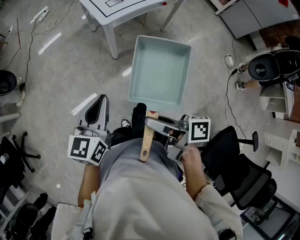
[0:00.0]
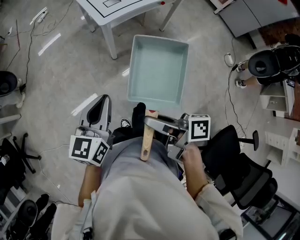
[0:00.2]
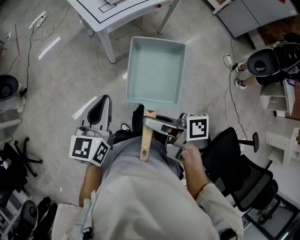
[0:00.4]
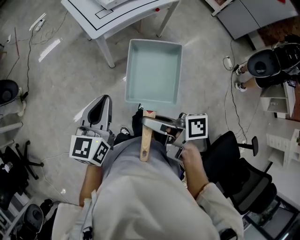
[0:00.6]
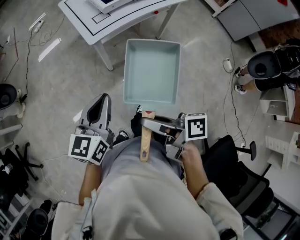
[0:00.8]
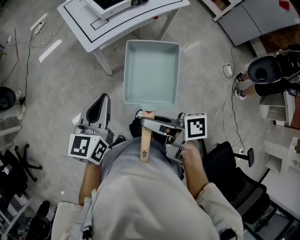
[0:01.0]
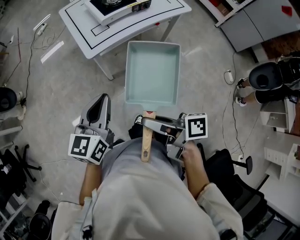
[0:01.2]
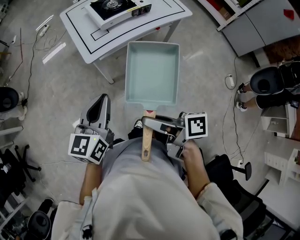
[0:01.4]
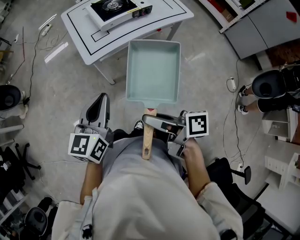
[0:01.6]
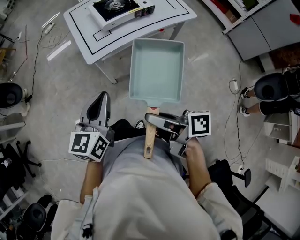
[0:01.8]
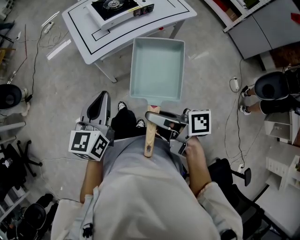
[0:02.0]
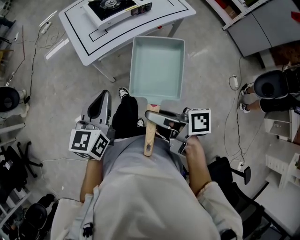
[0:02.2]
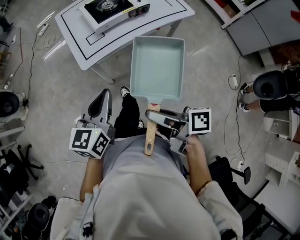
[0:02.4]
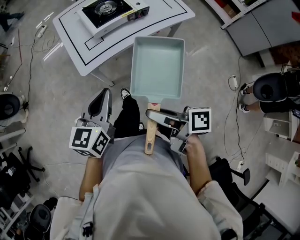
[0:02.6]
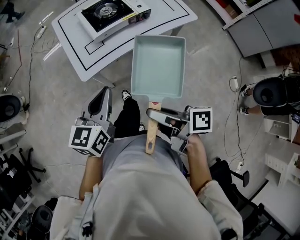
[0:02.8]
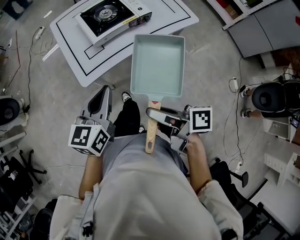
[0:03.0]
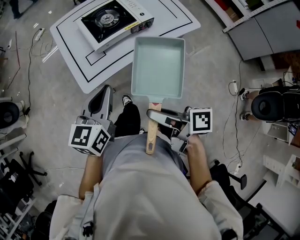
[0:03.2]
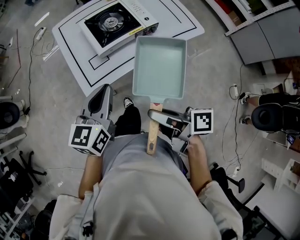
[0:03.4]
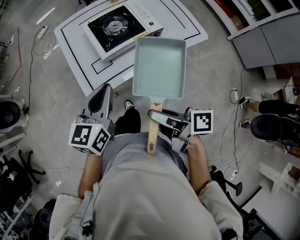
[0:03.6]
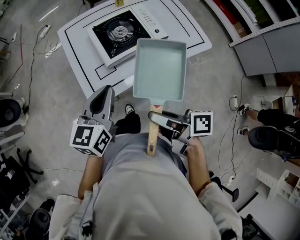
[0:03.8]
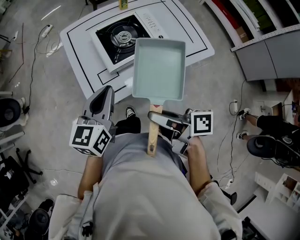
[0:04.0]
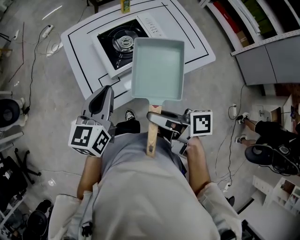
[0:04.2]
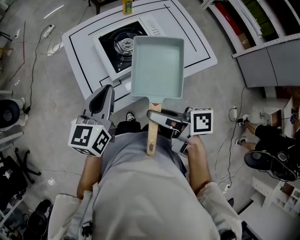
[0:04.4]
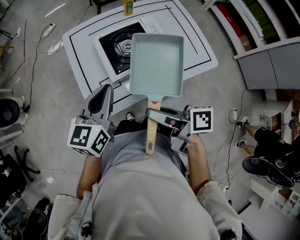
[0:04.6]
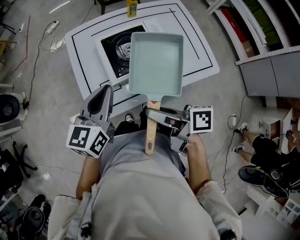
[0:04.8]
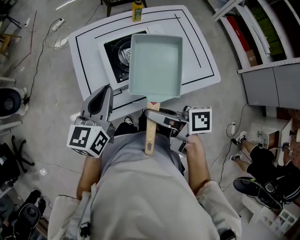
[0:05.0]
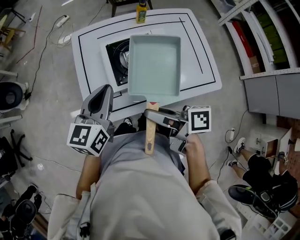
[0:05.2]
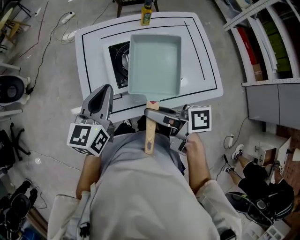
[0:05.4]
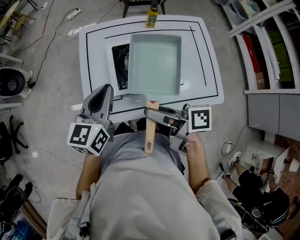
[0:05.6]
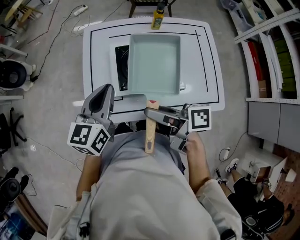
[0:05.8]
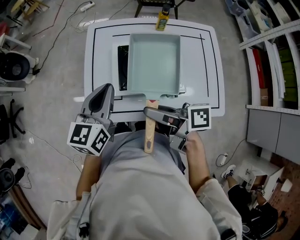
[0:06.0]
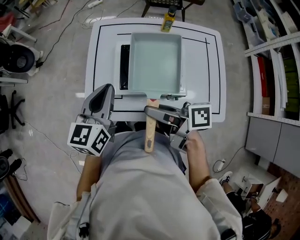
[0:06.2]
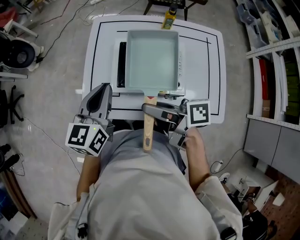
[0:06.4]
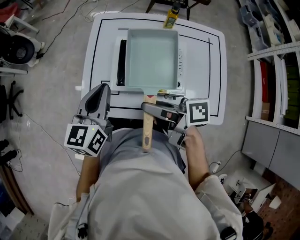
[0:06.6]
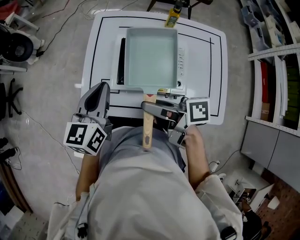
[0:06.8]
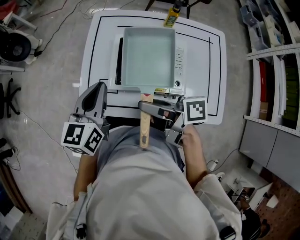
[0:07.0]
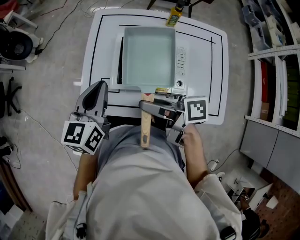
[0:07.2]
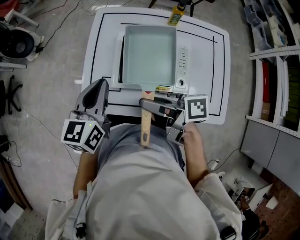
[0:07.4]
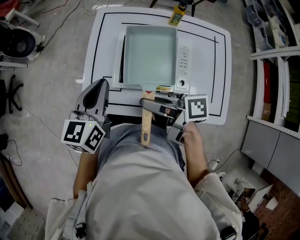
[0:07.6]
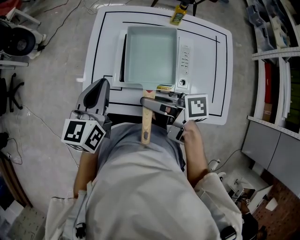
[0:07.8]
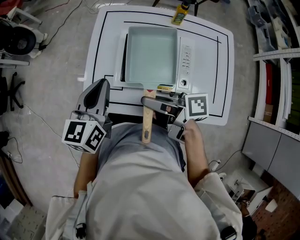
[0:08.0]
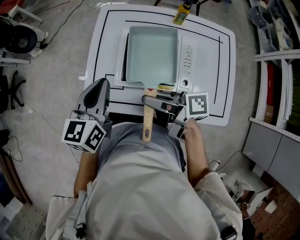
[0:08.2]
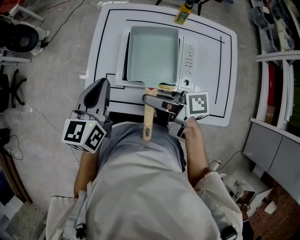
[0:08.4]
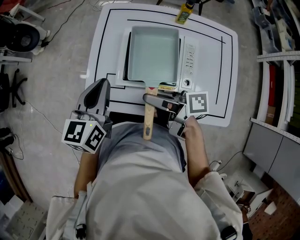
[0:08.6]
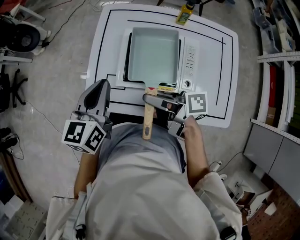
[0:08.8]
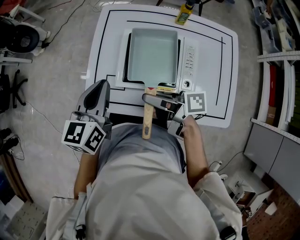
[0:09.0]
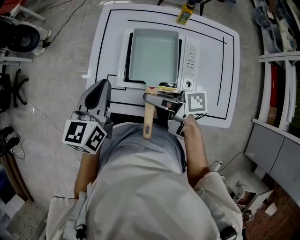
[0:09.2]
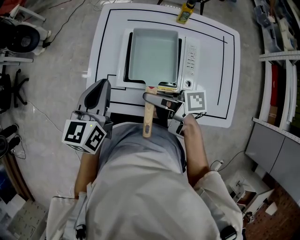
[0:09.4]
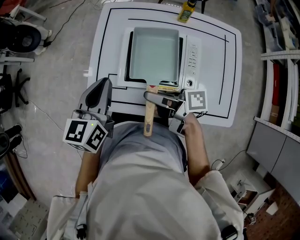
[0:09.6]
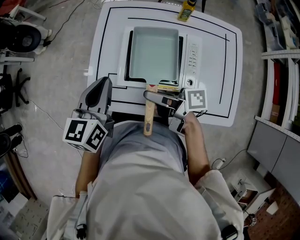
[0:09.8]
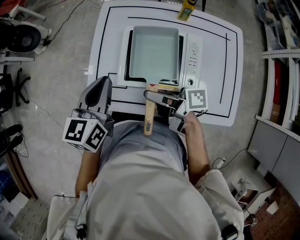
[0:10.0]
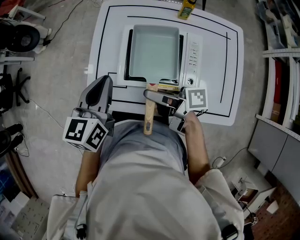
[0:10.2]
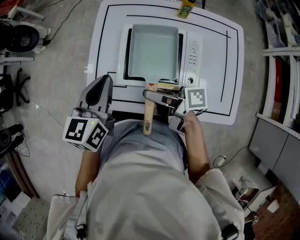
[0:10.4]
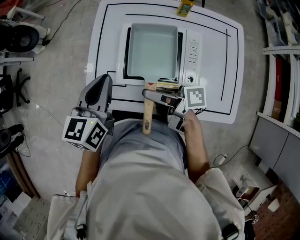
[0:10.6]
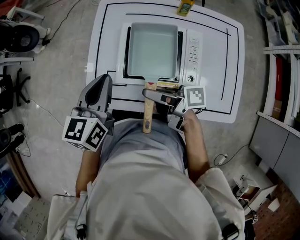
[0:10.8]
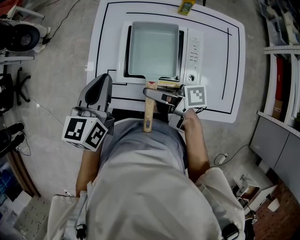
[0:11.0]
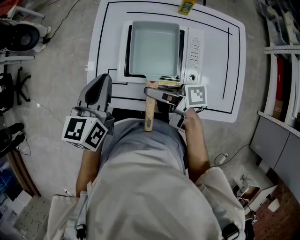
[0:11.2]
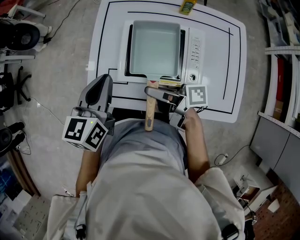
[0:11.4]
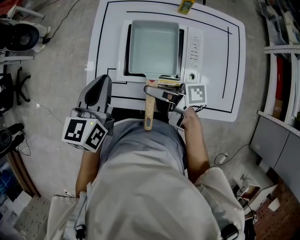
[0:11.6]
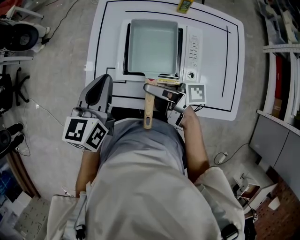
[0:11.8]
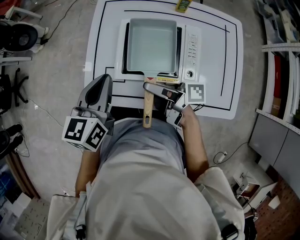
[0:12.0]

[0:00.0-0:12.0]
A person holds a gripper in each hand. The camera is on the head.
0:00.0 to 0:01.6: The left gripper changes place by some 25 cm.
0:01.6 to 0:03.0: The left gripper changes place by approximately 15 cm.
0:03.0 to 0:04.4: The left gripper moves roughly 20 cm.
0:04.4 to 0:06.0: The left gripper shifts by some 10 cm, and turns by some 20 degrees.

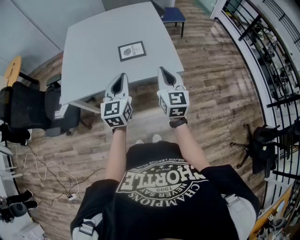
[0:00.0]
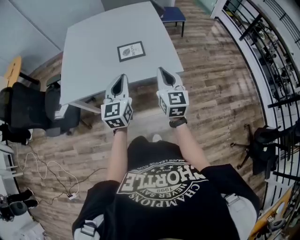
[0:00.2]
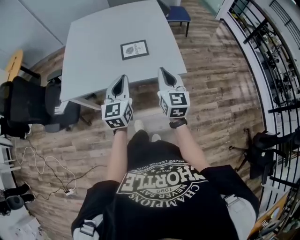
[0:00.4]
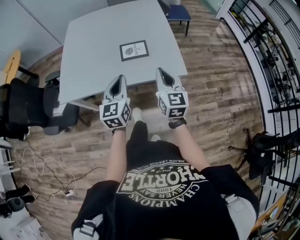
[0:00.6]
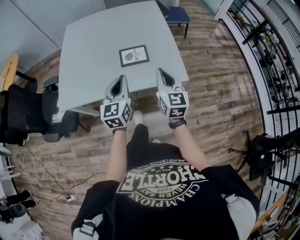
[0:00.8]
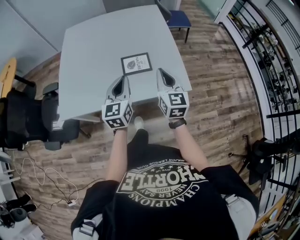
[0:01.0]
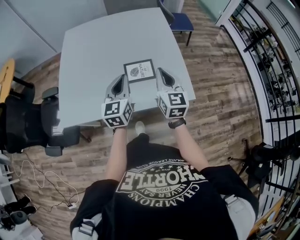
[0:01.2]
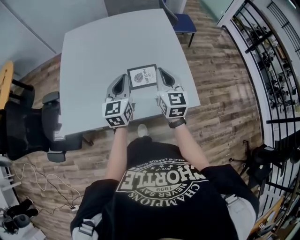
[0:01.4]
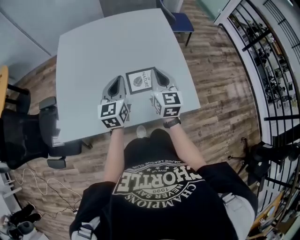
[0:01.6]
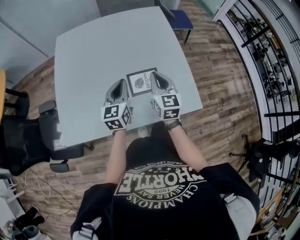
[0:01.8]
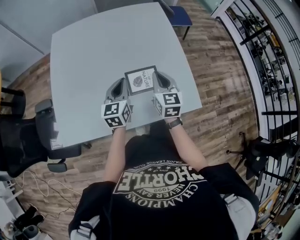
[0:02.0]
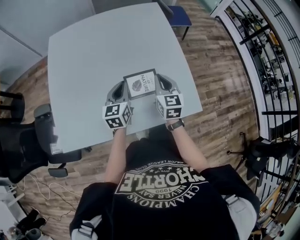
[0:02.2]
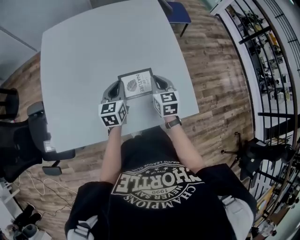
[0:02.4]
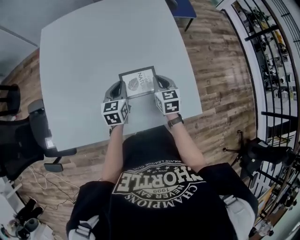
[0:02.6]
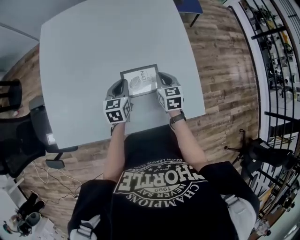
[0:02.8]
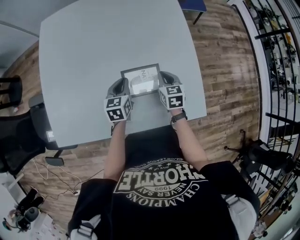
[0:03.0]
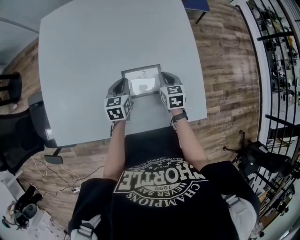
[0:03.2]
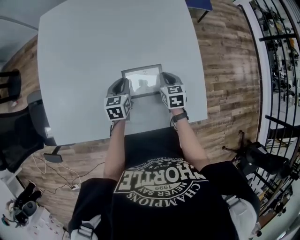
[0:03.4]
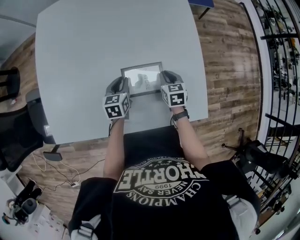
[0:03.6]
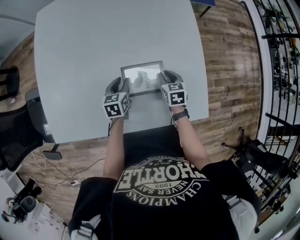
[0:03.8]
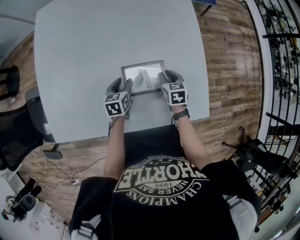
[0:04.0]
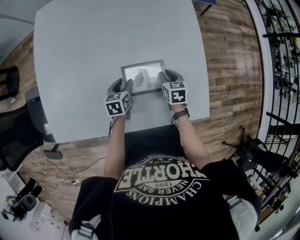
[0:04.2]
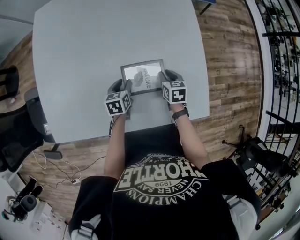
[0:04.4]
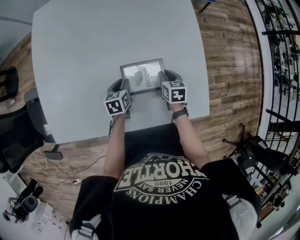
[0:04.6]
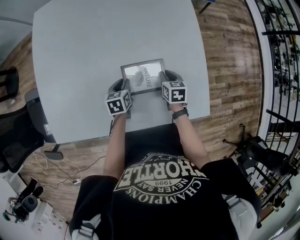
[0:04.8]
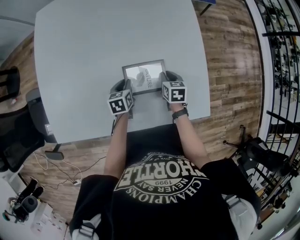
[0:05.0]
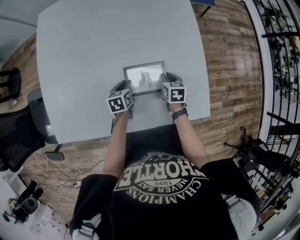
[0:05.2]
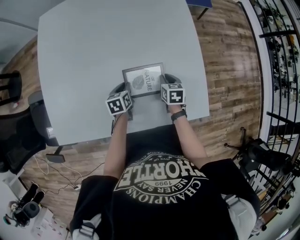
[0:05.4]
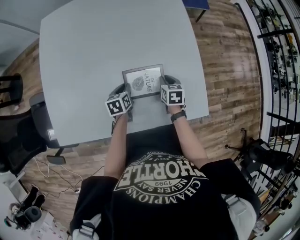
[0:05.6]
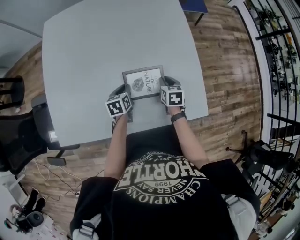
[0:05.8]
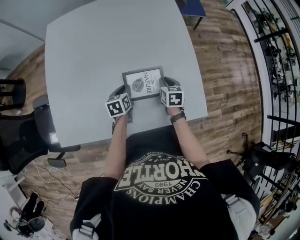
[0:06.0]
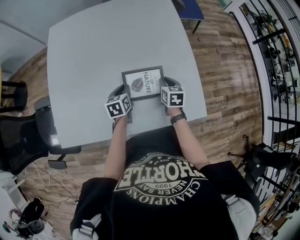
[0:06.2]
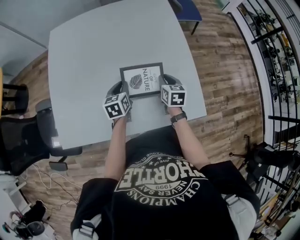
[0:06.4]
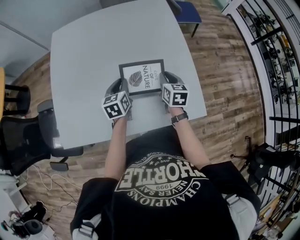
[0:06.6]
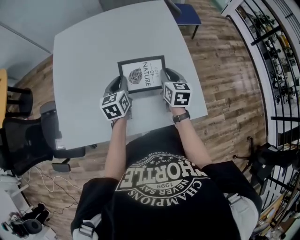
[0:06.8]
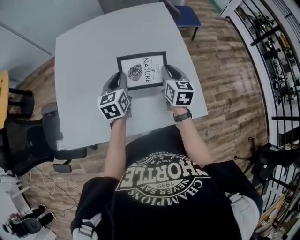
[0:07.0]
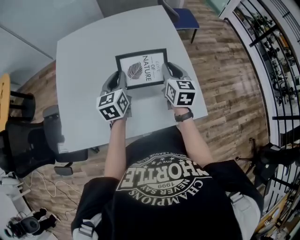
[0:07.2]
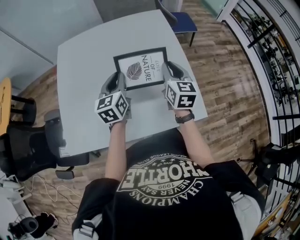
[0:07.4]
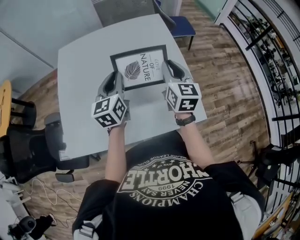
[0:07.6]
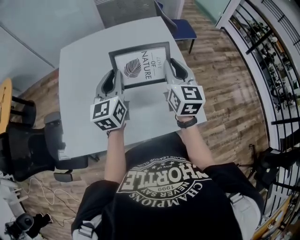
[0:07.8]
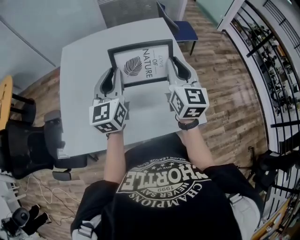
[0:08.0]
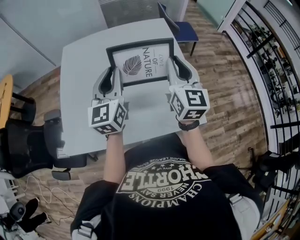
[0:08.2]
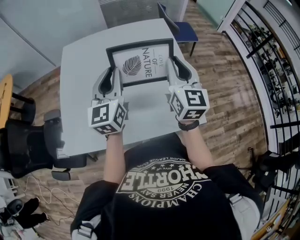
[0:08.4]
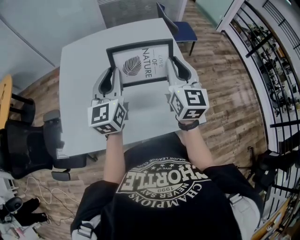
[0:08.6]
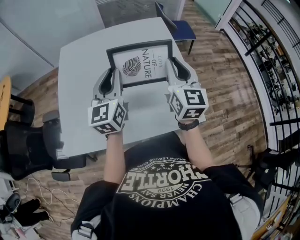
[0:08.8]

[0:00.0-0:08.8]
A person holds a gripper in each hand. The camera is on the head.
0:00.0 to 0:01.4: The two grippers go roughly 30 cm forward.
0:01.4 to 0:03.0: The grippers both shift downward and forward by about 30 cm. The left gripper changes its angle by approximately 30 degrees; the right gripper angles its fingers downward, by about 30 degrees.
0:03.0 to 0:04.4: The grippers both shift downward by some 10 cm. The right gripper opens its fingers, while the left gripper opens its fingers.
0:04.4 to 0:05.8: The grippers move only a little.
0:05.8 to 0:07.4: Both grippers travel together upward, approximately 30 cm. The left gripper tips its fingers upward by roughly 30 degrees, while the right gripper tilts its fingers some 30 degrees upward.
0:07.4 to 0:08.8: The two grippers go about 10 cm upward.

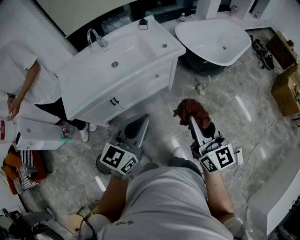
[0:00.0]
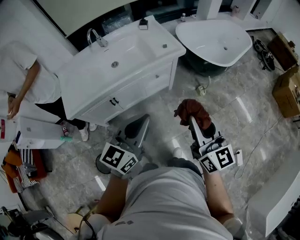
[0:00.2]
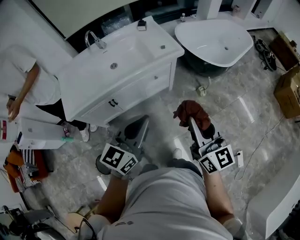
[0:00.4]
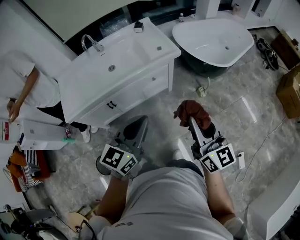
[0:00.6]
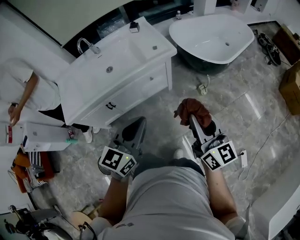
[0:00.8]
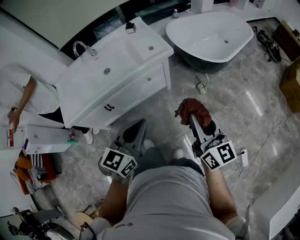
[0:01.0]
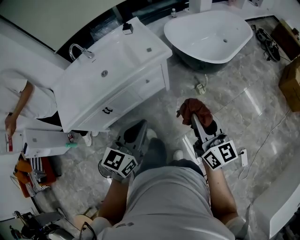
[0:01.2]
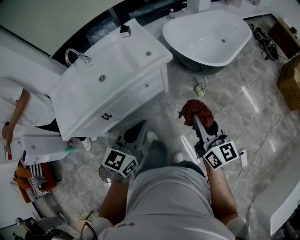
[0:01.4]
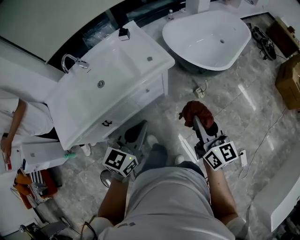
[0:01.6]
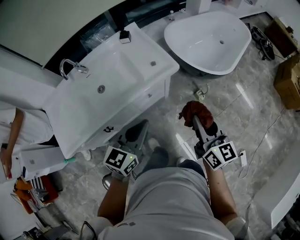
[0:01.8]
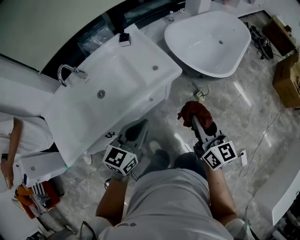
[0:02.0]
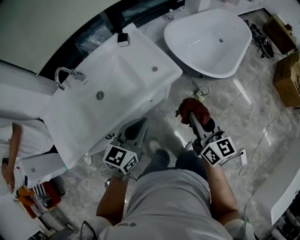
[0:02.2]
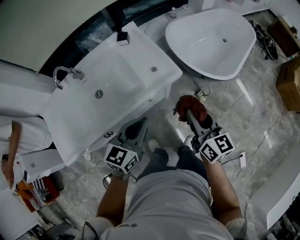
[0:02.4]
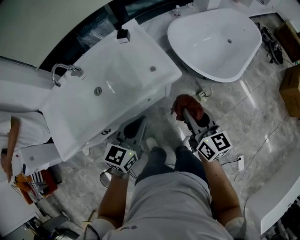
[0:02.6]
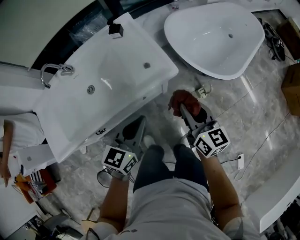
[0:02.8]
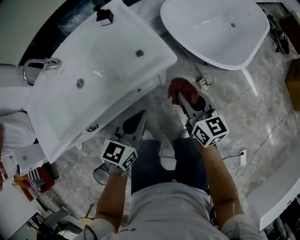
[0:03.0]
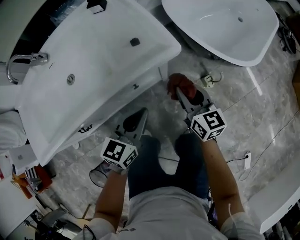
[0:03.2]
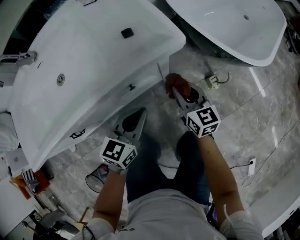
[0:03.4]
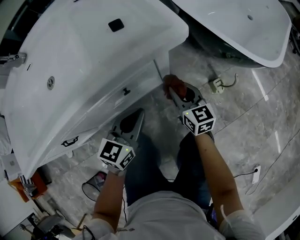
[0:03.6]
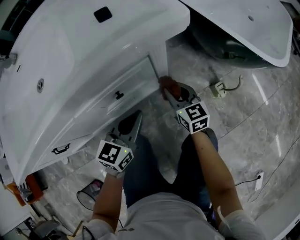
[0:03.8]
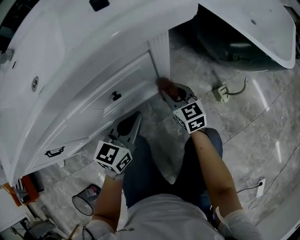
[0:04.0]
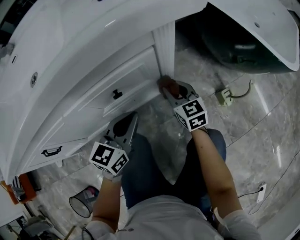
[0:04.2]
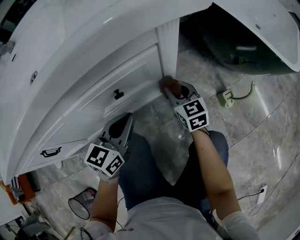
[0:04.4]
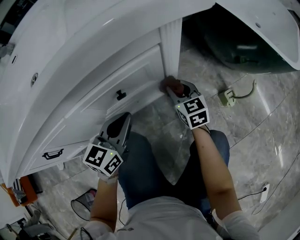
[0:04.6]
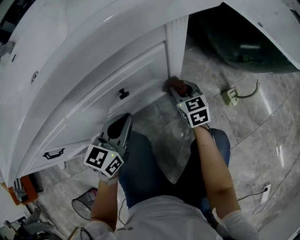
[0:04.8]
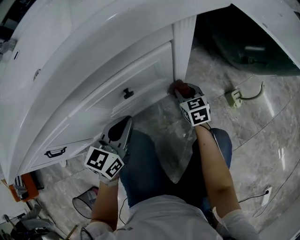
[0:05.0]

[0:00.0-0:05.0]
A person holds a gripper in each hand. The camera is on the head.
0:00.0 to 0:01.6: The right gripper shifts about 20 cm forward, to the right and downward; the left gripper shifts roughly 20 cm forward.
0:01.6 to 0:03.4: Both grippers move downward and forward, roughly 40 cm.
0:03.4 to 0:05.0: The left gripper is displaced downward and to the left by approximately 20 cm. Meanwhile the right gripper goes roughly 30 cm downward, and changes its angle by some 20 degrees.
